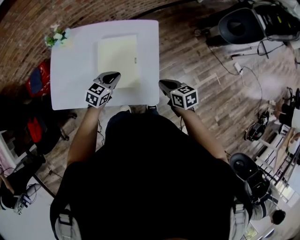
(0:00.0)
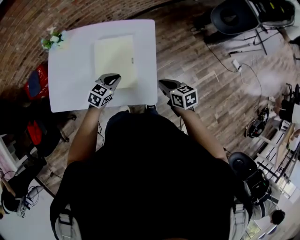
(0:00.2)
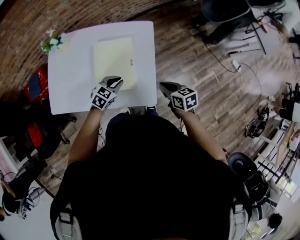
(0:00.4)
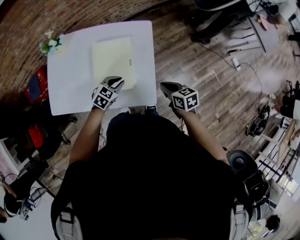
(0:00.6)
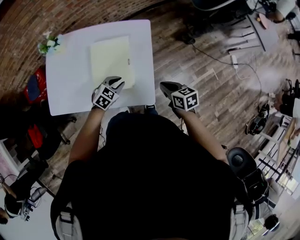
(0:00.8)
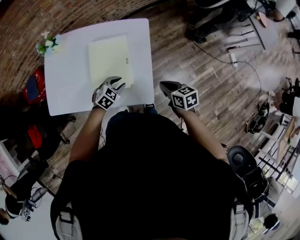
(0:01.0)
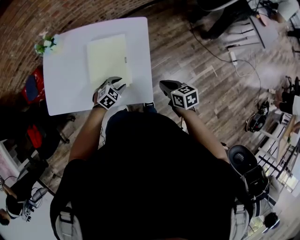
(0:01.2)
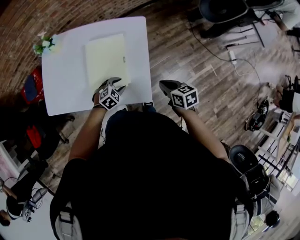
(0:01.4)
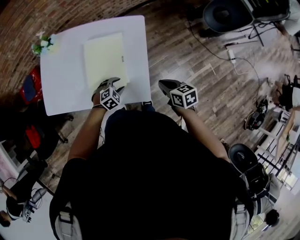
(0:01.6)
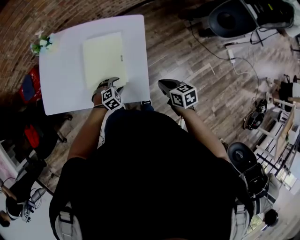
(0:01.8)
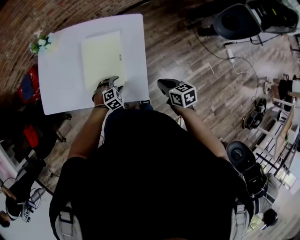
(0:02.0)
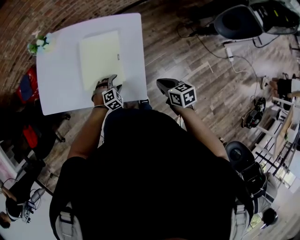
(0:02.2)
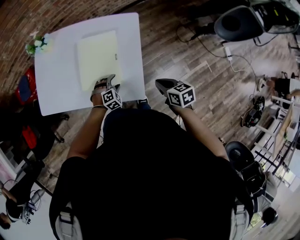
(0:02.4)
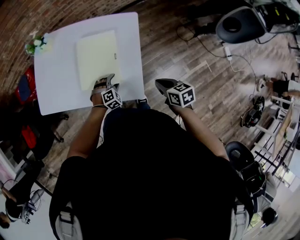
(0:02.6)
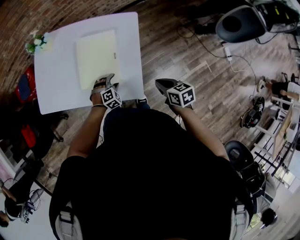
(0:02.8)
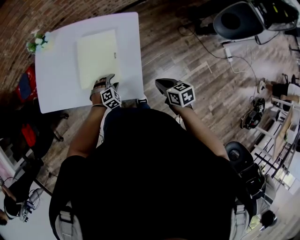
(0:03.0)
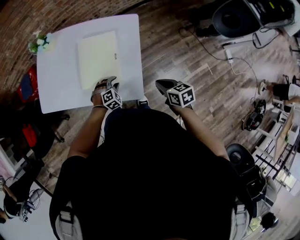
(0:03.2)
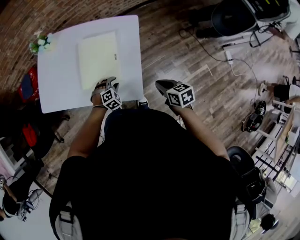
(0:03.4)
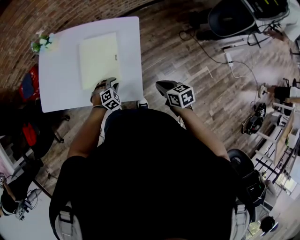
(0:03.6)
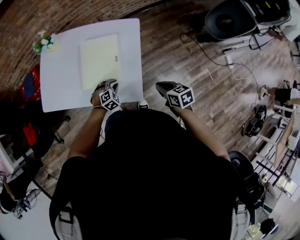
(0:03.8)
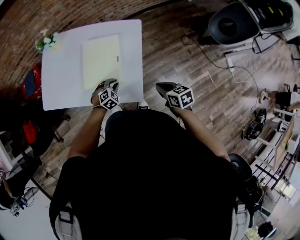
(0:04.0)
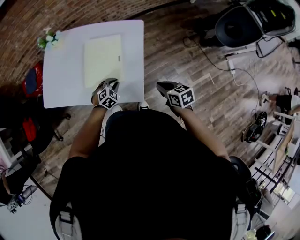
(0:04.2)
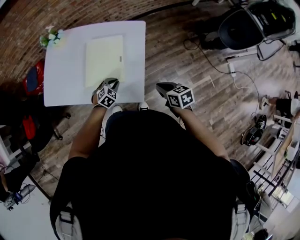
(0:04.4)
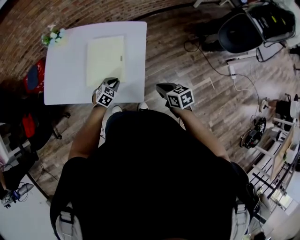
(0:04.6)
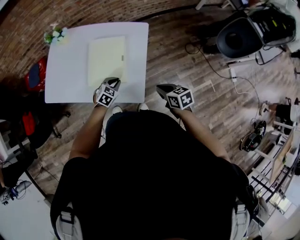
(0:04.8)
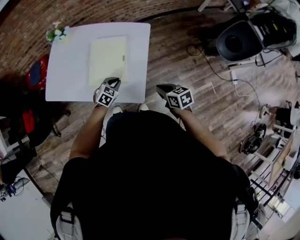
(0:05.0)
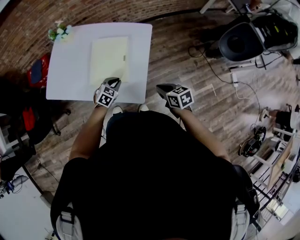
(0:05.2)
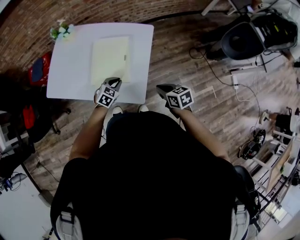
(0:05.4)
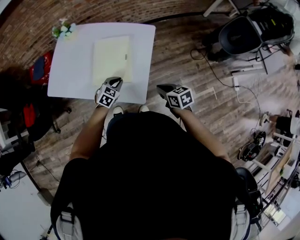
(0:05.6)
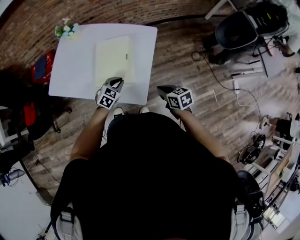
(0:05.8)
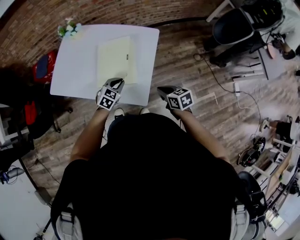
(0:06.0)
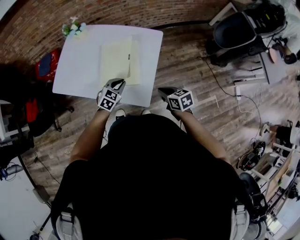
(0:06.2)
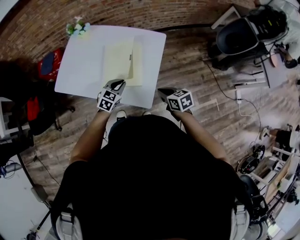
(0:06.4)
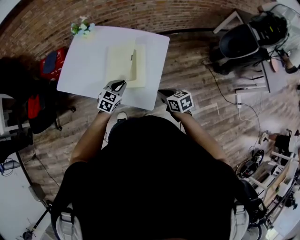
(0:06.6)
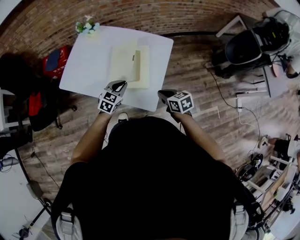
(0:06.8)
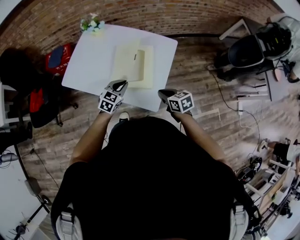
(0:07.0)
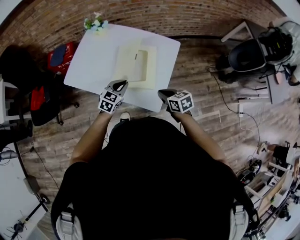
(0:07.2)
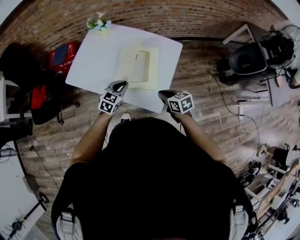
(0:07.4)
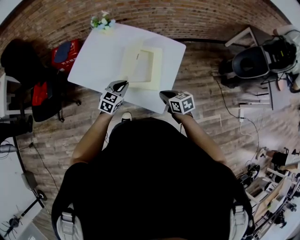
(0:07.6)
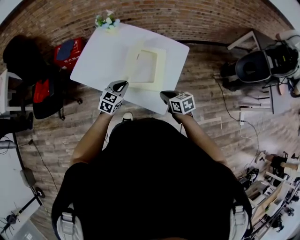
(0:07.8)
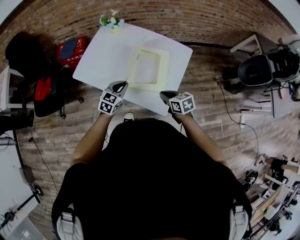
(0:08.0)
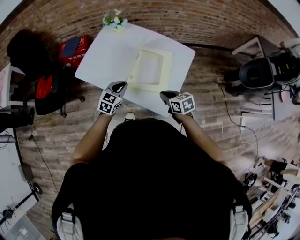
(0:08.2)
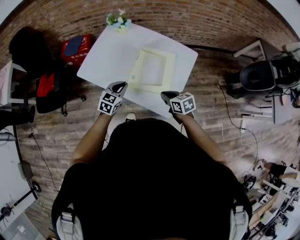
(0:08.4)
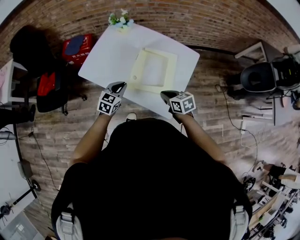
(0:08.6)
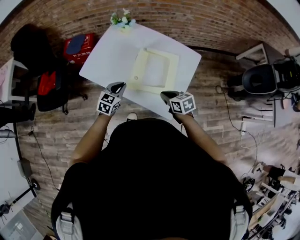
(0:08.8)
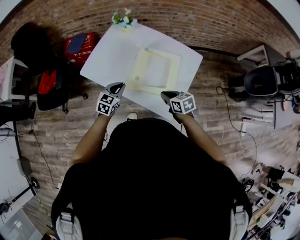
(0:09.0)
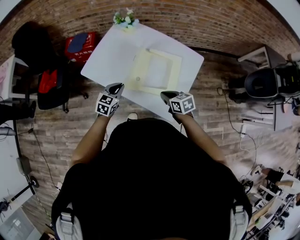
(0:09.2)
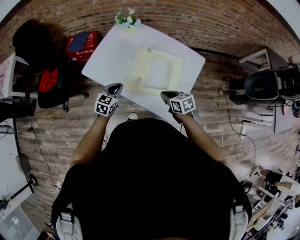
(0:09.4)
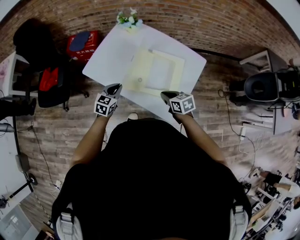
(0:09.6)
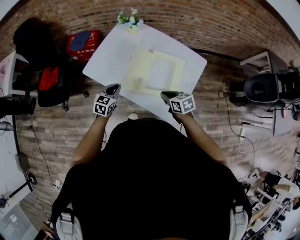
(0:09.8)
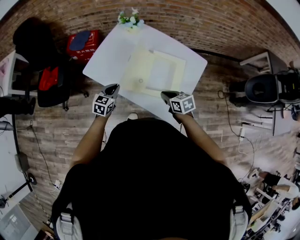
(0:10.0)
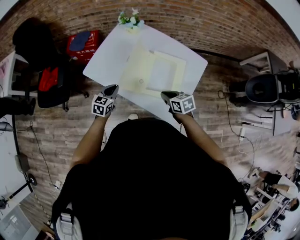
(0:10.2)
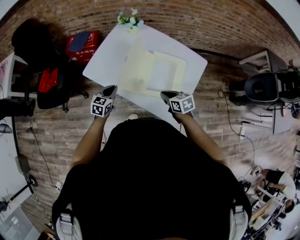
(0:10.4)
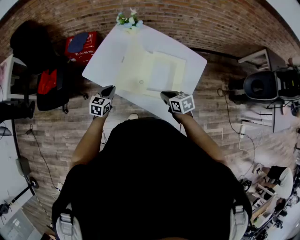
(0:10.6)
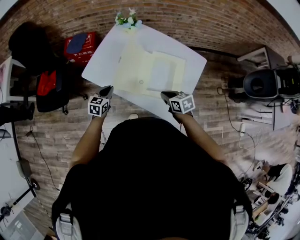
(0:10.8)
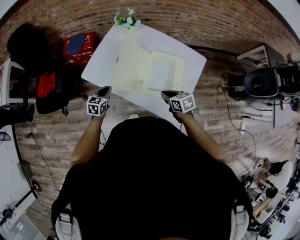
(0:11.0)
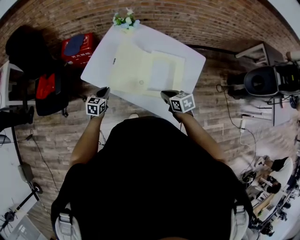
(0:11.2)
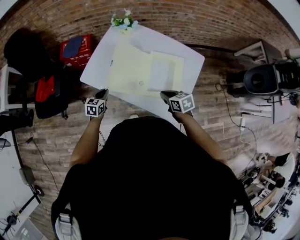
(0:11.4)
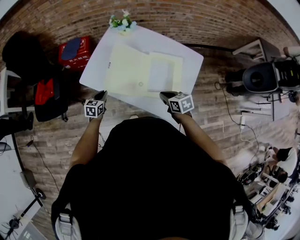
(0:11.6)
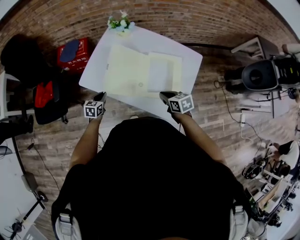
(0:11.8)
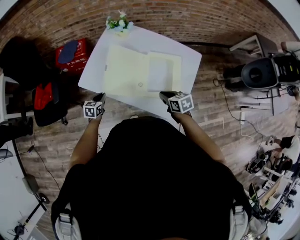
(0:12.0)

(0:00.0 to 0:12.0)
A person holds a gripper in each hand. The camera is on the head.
0:00.0 - 0:01.6: The right gripper shifts approximately 5 cm to the right. Meanwhile the left gripper goes roughly 15 cm downward and to the right, turns by about 40 degrees, and opens its fingers.
0:01.6 - 0:03.0: The grippers stay close to where they were, moving slightly.
0:03.0 - 0:04.4: The left gripper changes its angle by approximately 20 degrees, and closes its fingers.
0:04.4 - 0:06.0: The left gripper heads upward, covering some 5 cm.
0:06.0 - 0:07.6: The right gripper shifts approximately 10 cm to the left; the left gripper shifts some 15 cm to the left and upward.
0:07.6 - 0:09.0: The right gripper moves to the left and forward, about 10 cm. Meanwhile the left gripper travels to the left by roughly 10 cm.
0:09.0 - 0:10.4: The left gripper goes roughly 10 cm to the left.
0:10.4 - 0:12.0: The left gripper moves downward and to the left, some 10 cm.

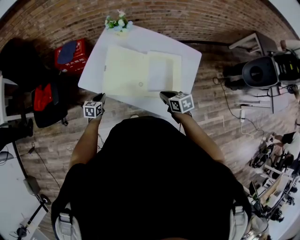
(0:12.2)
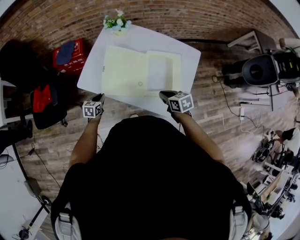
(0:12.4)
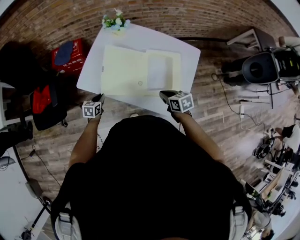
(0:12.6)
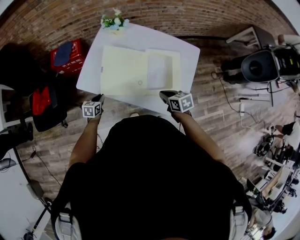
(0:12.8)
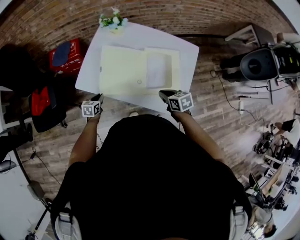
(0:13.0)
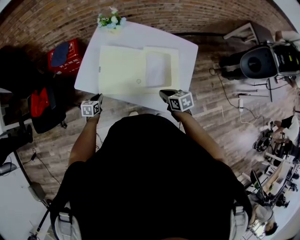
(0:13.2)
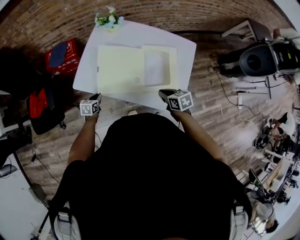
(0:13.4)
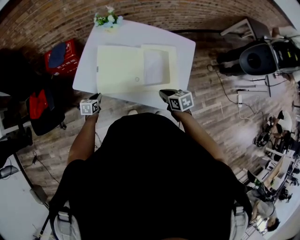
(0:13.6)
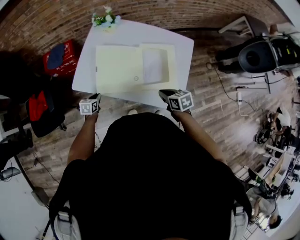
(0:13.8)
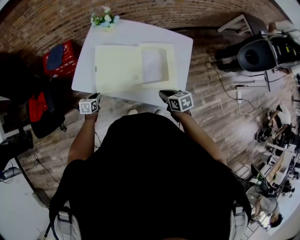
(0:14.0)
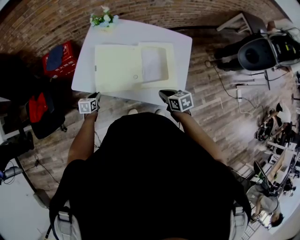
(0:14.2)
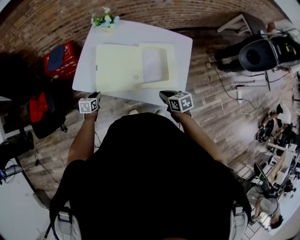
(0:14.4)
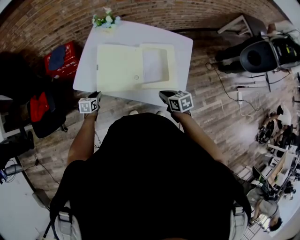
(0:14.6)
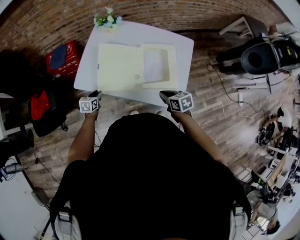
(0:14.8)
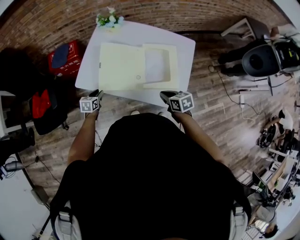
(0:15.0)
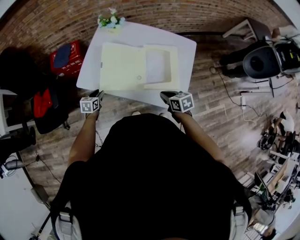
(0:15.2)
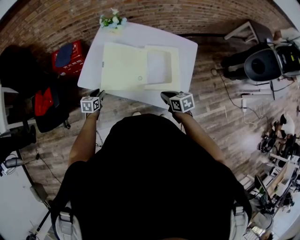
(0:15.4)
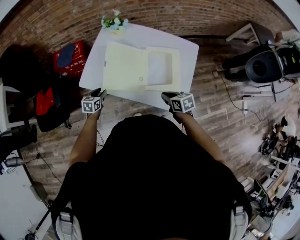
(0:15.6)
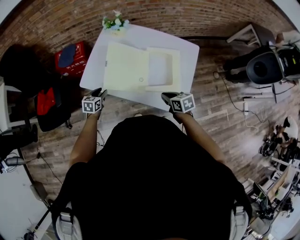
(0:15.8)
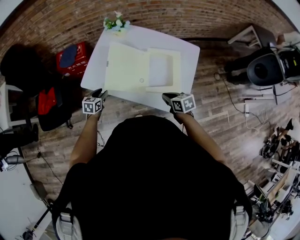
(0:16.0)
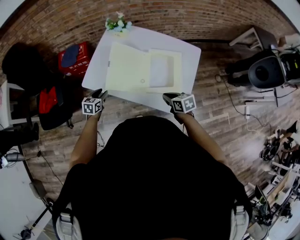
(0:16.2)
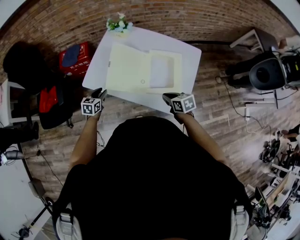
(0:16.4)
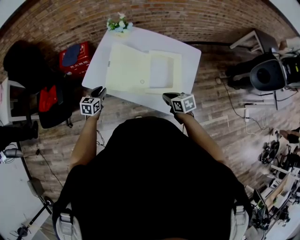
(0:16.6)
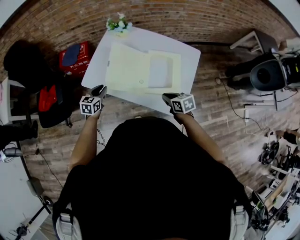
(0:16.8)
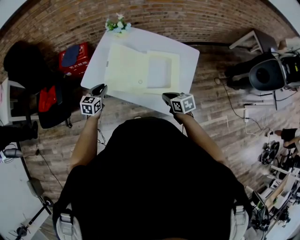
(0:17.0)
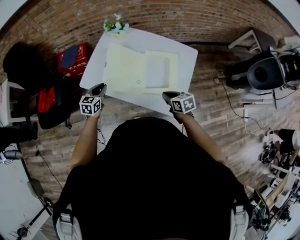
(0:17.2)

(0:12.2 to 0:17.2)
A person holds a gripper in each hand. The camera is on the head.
0:12.2 - 0:13.8: The left gripper travels downward by some 5 cm.
0:13.8 - 0:15.6: The left gripper is displaced upward by roughly 5 cm, and opens its fingers.
0:15.6 - 0:17.2: The left gripper is displaced upward and to the right by some 10 cm, and closes its fingers.

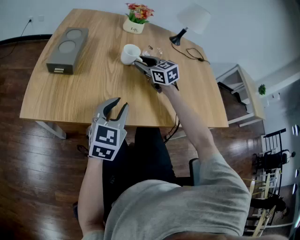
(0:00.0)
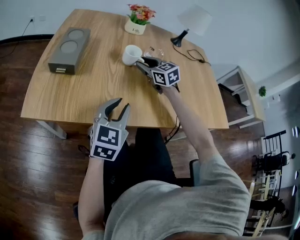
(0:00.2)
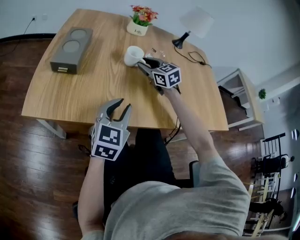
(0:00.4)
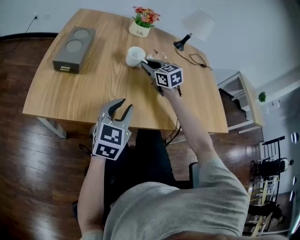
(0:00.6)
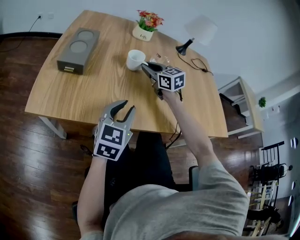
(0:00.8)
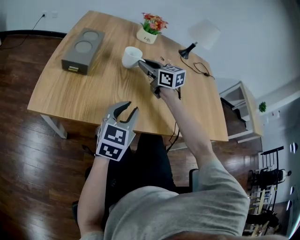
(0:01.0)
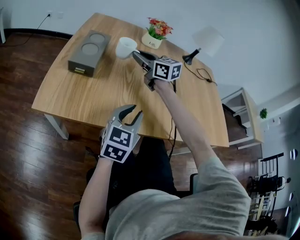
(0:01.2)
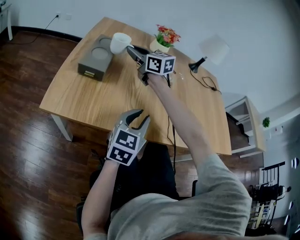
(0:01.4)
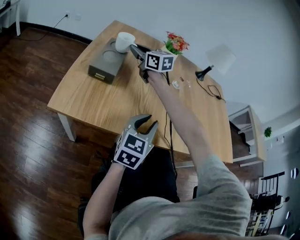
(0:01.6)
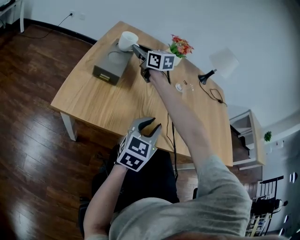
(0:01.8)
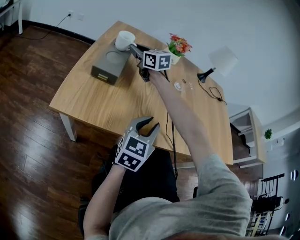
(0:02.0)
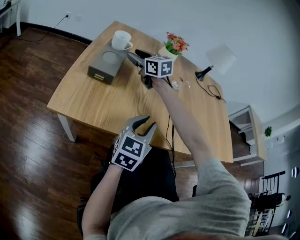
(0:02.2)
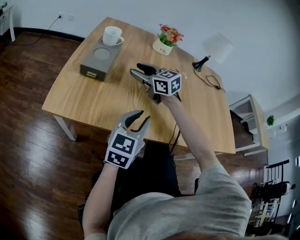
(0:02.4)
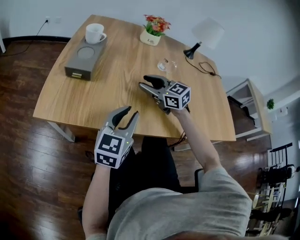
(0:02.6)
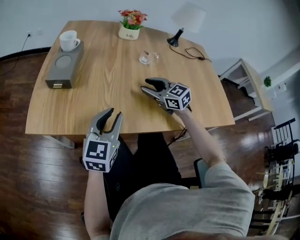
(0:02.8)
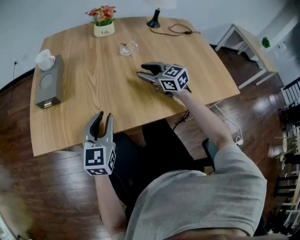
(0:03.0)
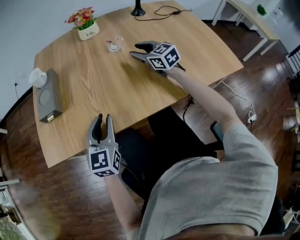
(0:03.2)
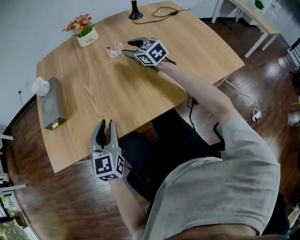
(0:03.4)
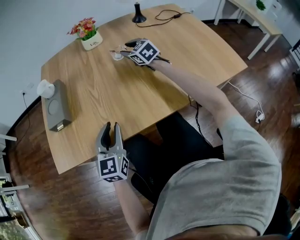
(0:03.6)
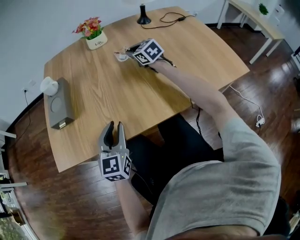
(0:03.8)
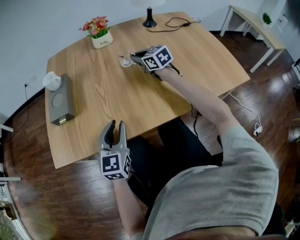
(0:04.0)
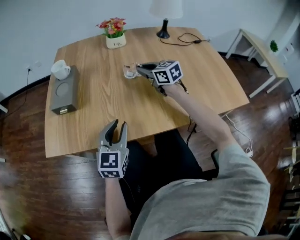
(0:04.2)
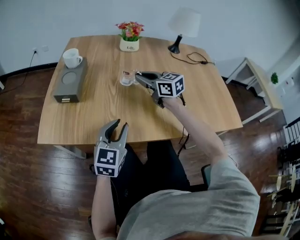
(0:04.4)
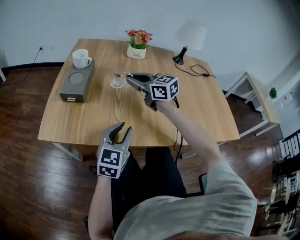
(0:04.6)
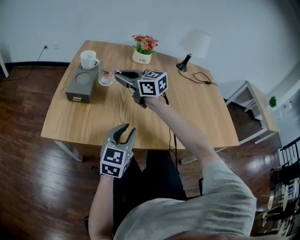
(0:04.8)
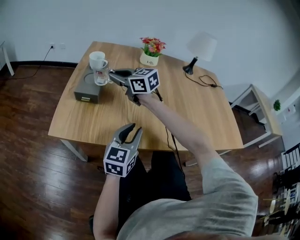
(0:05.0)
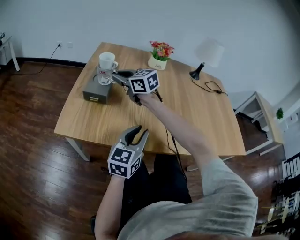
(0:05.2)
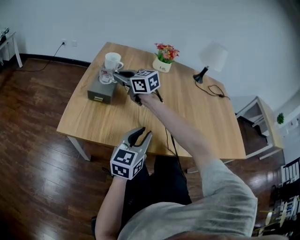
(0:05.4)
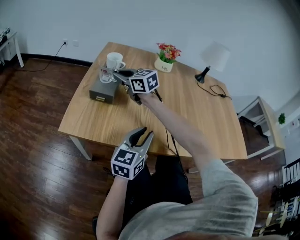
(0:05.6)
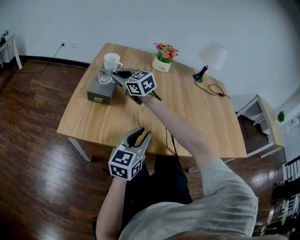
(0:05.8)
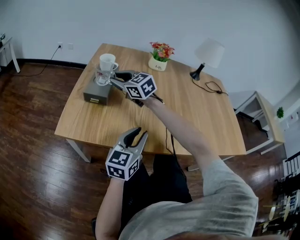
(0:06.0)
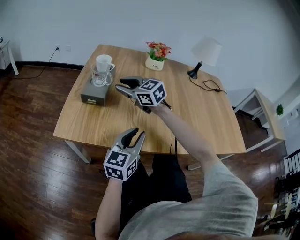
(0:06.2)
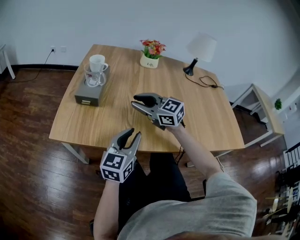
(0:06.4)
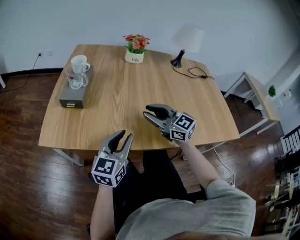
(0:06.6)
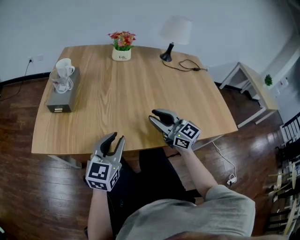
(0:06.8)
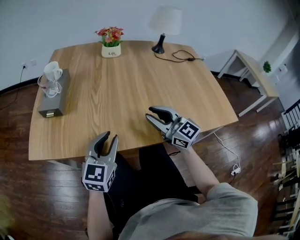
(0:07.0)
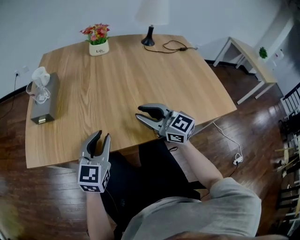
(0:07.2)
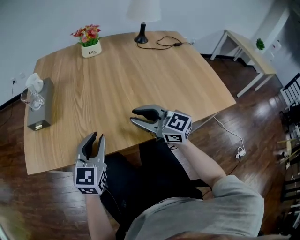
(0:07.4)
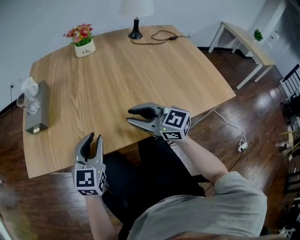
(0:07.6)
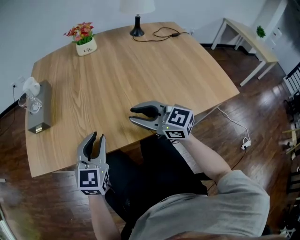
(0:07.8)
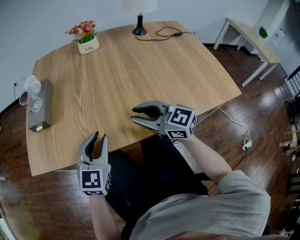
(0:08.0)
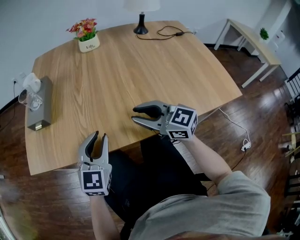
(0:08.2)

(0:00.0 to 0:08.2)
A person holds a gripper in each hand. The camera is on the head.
0:00.0 - 0:01.6: The right gripper moves to the left, approximately 25 cm.
0:01.6 - 0:03.2: The right gripper heads to the right, covering some 35 cm, rotates roughly 20 degrees, and opens its fingers.
0:03.2 - 0:05.0: The right gripper shifts about 35 cm to the left, changes its angle by roughly 30 degrees, and closes.
0:05.0 - 0:06.6: The right gripper travels backward and to the right by about 25 cm.
0:06.6 - 0:08.2: The left gripper turns by some 20 degrees, while the right gripper travels backward and to the right by about 10 cm.
